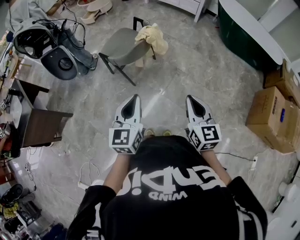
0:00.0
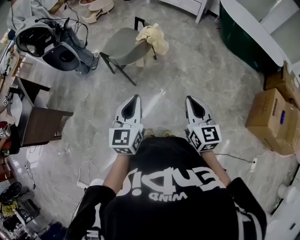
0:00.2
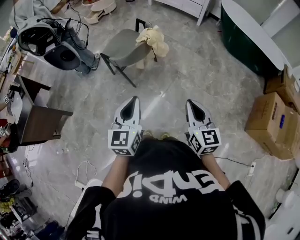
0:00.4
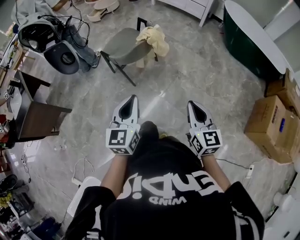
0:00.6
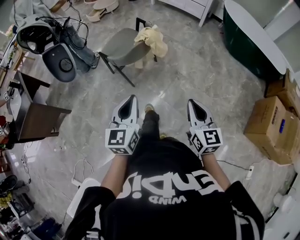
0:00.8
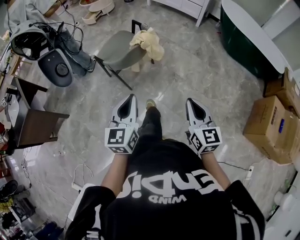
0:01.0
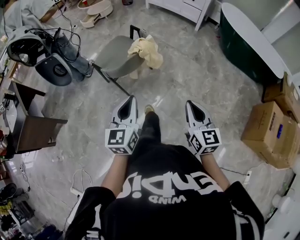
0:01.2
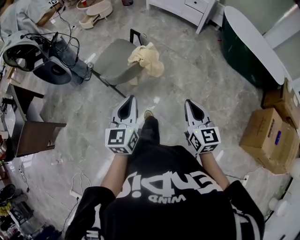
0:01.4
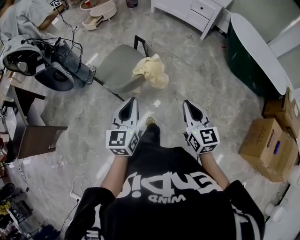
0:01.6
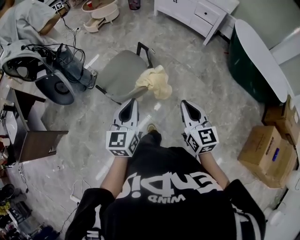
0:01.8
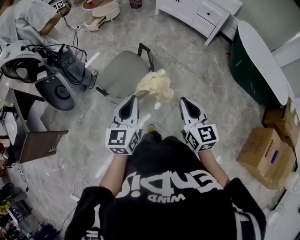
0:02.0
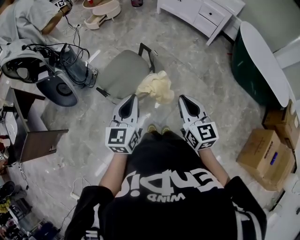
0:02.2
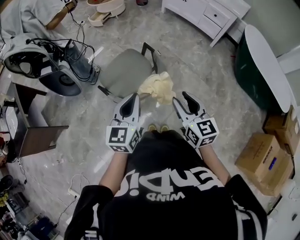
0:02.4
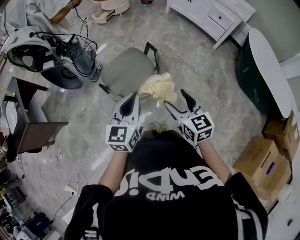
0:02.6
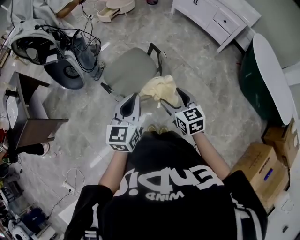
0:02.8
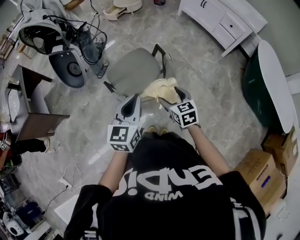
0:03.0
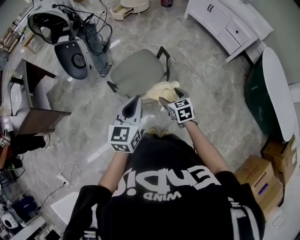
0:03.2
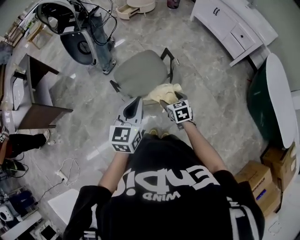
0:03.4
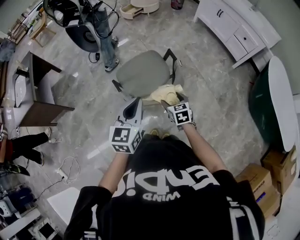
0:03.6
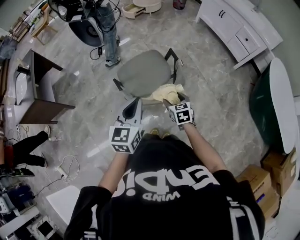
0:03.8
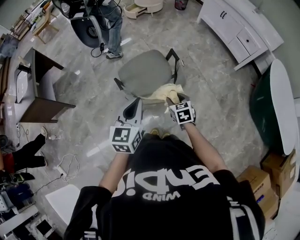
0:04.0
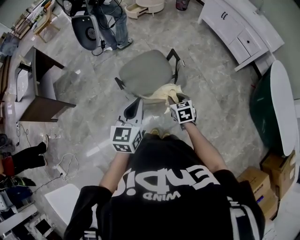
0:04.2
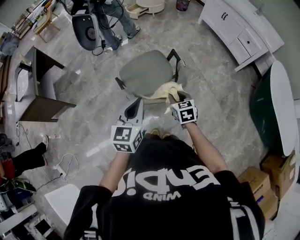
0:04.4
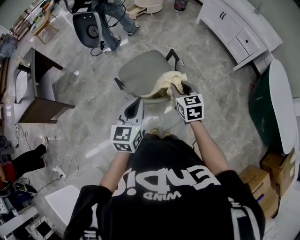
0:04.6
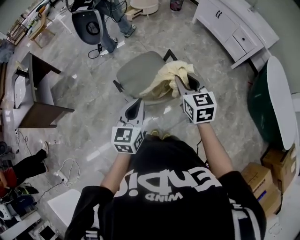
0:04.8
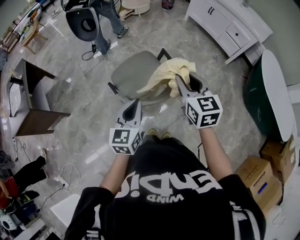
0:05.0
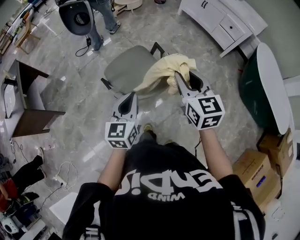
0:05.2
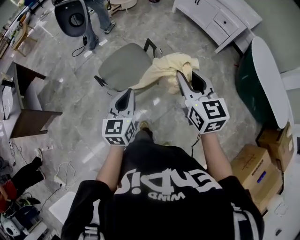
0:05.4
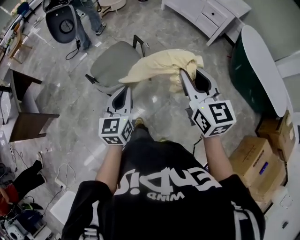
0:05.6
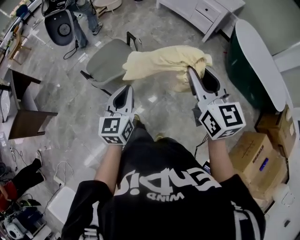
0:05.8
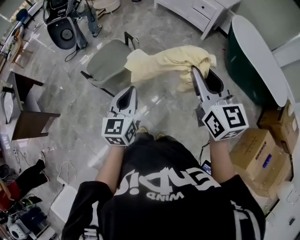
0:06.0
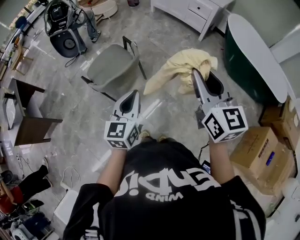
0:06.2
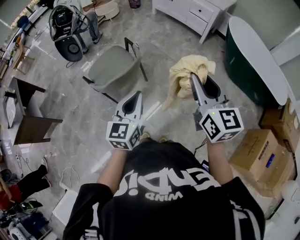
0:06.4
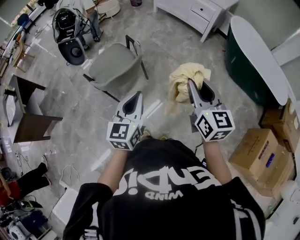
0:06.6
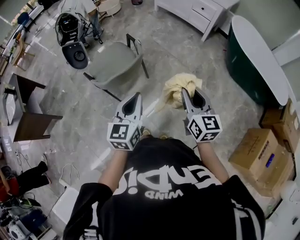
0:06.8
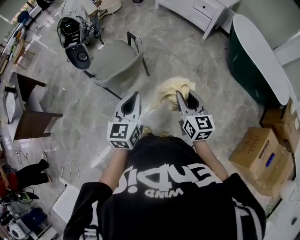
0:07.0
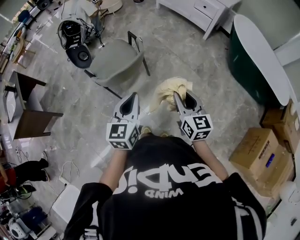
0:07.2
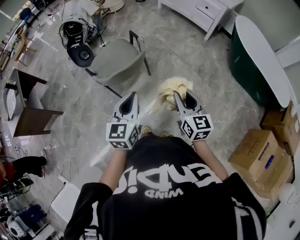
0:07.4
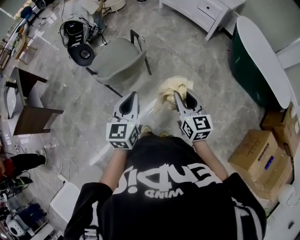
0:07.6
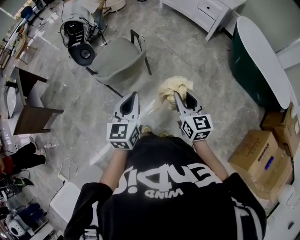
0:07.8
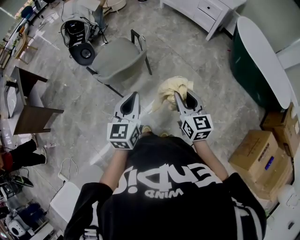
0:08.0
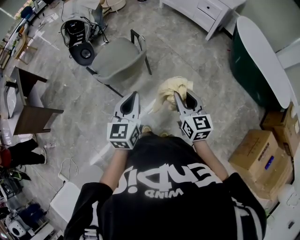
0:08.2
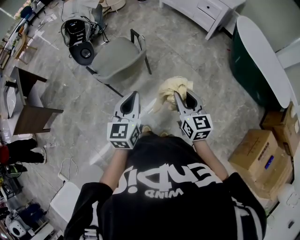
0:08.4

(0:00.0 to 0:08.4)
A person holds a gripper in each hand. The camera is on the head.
0:00.0 - 0:01.4: The grippers both shift forward by some 20 cm.
0:01.4 - 0:02.8: Both grippers travel together forward, roughly 25 cm. The right gripper turns by some 30 degrees, and opens.
0:02.8 - 0:04.2: The right gripper heads downward and forward, covering roughly 15 cm, and closes up.
0:04.2 - 0:05.6: The right gripper travels upward, to the right and backward by about 35 cm, and points its fingers some 30 degrees further upward. Meanwhile the left gripper heads to the right and backward, covering roughly 10 cm.
0:05.6 - 0:07.0: The right gripper heads downward, backward and to the right, covering roughly 20 cm, while the left gripper is displaced backward and to the right by about 15 cm.
0:07.0 - 0:08.4: The grippers make only small movements.

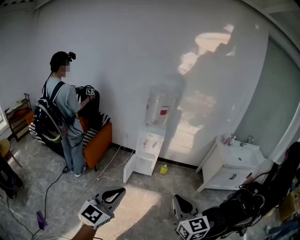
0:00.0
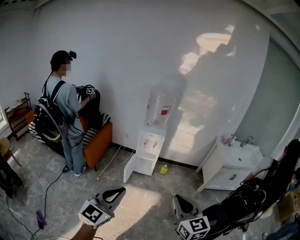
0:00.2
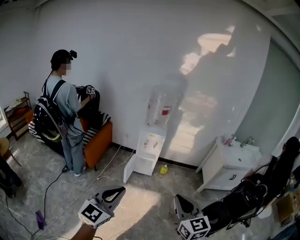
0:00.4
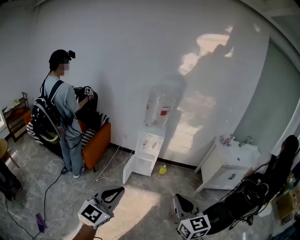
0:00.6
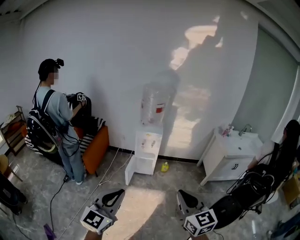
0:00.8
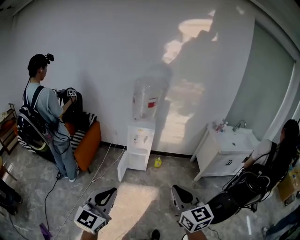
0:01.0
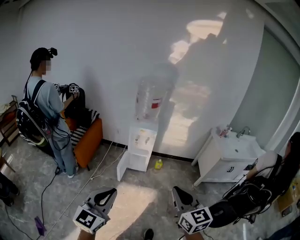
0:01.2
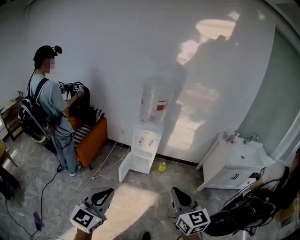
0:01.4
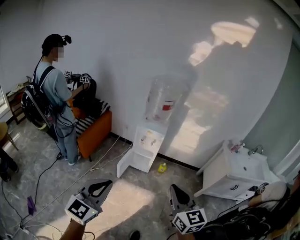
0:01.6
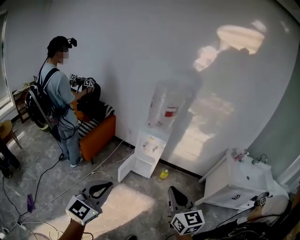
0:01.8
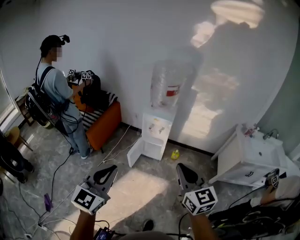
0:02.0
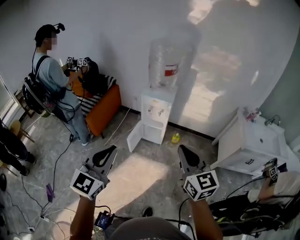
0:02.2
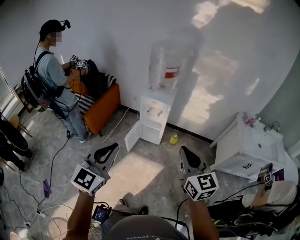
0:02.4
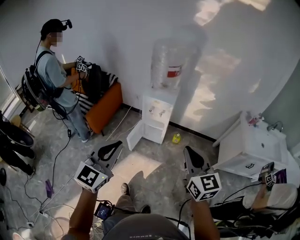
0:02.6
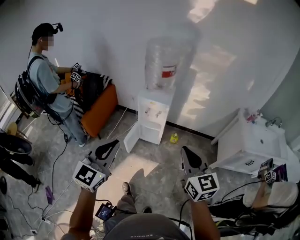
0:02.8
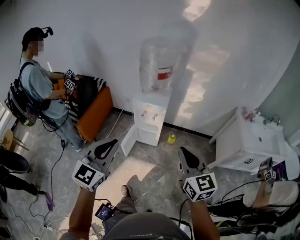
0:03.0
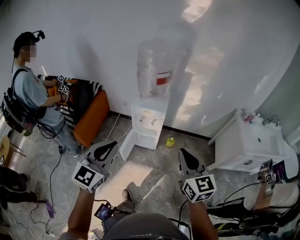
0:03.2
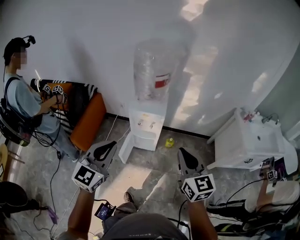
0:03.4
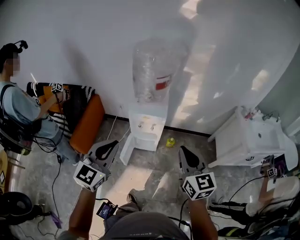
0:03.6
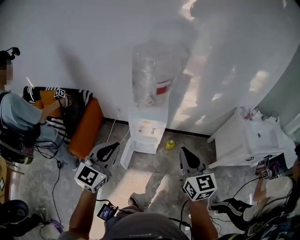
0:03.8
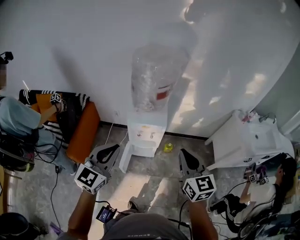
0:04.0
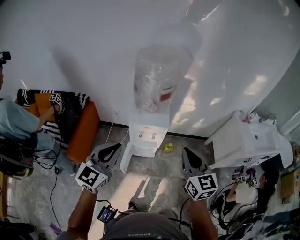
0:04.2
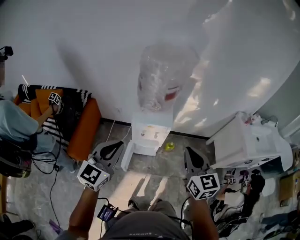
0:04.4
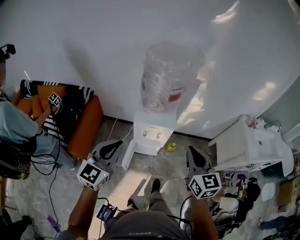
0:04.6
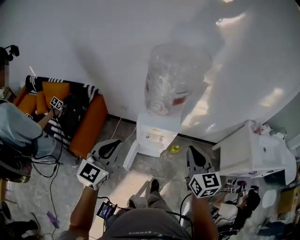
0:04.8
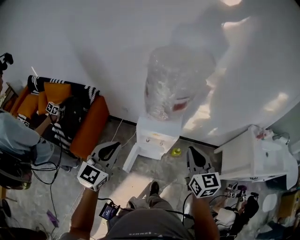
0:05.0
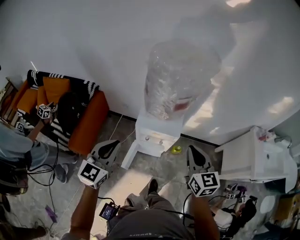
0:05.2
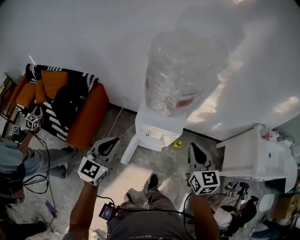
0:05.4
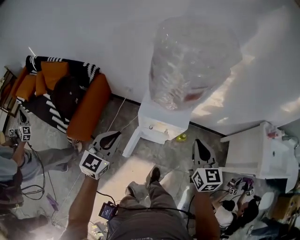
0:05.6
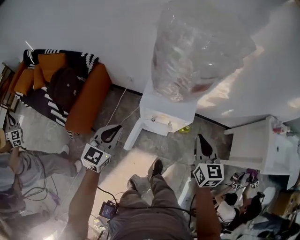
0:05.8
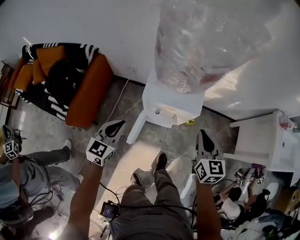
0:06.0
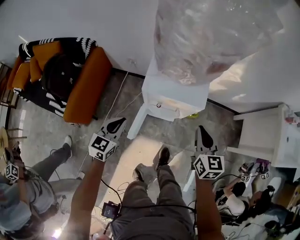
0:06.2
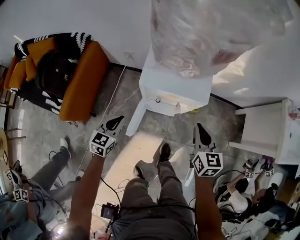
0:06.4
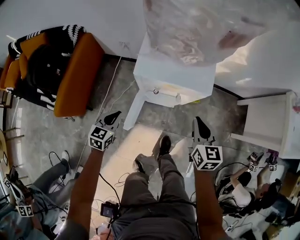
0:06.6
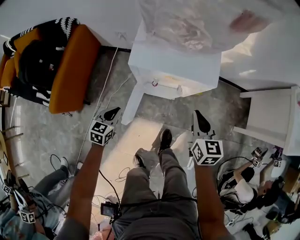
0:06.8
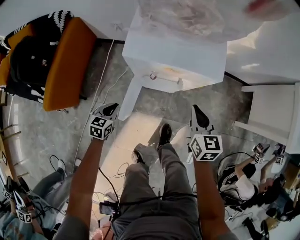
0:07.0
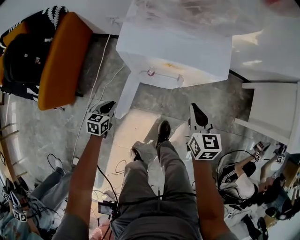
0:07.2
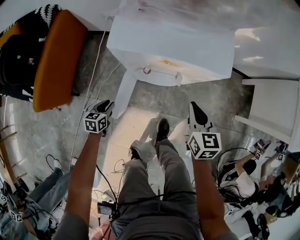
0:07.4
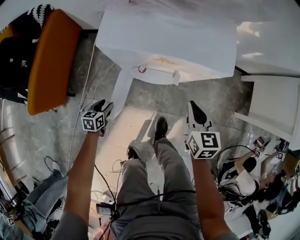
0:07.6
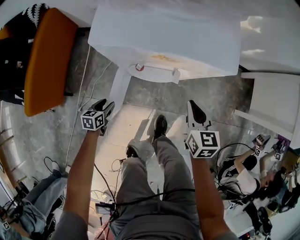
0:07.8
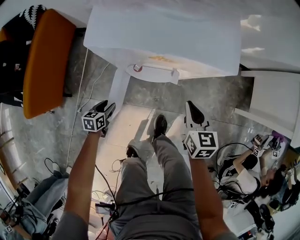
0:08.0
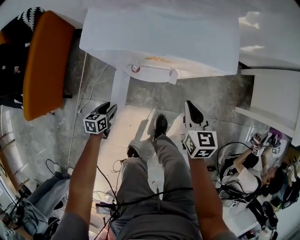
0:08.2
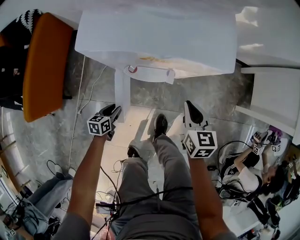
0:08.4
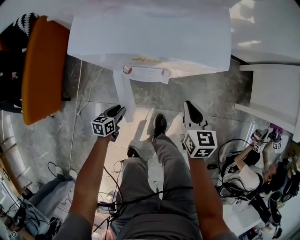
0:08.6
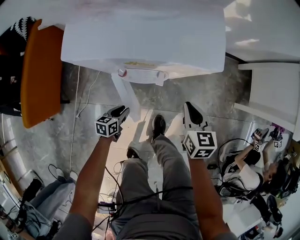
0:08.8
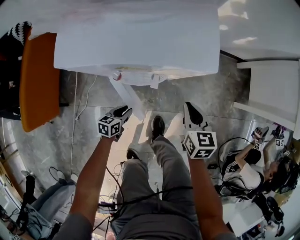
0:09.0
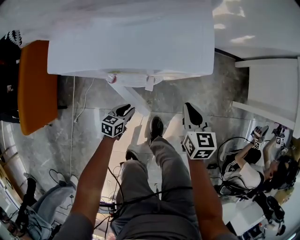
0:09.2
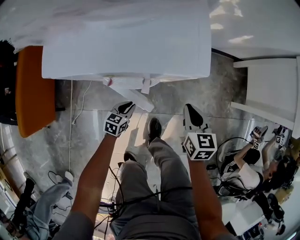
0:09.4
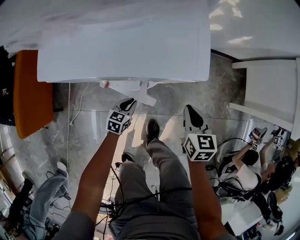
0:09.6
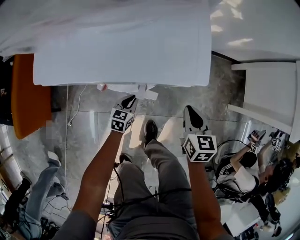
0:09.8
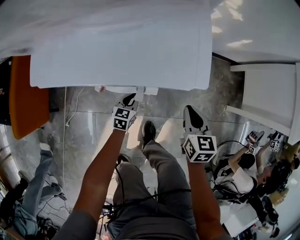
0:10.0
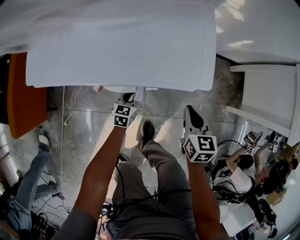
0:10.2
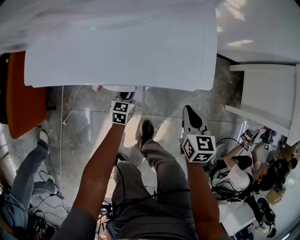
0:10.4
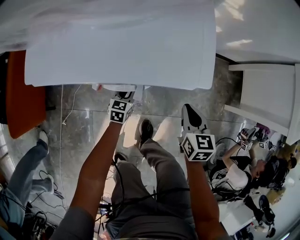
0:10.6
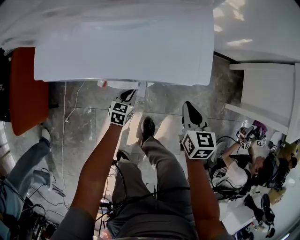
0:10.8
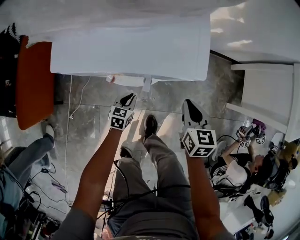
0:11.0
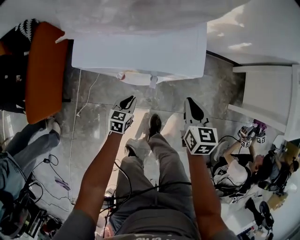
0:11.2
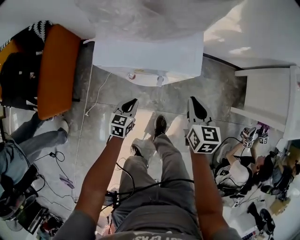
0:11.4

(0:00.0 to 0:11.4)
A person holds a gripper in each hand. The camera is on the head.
0:00.0 - 0:01.4: The left gripper moves forward and downward, about 10 cm. The right gripper moves forward, approximately 10 cm.
0:01.4 - 0:02.8: Both grippers move forward and to the right, about 20 cm.
0:02.8 - 0:04.2: Both grippers move forward and to the left, about 25 cm.
0:04.2 - 0:05.6: The right gripper travels forward and downward by roughly 20 cm. Meanwhile the left gripper travels downward and forward by roughly 20 cm.
0:05.6 - 0:07.2: The right gripper travels downward by approximately 35 cm; the left gripper travels downward by some 50 cm, and points its fingers some 30 degrees further downward.
0:07.2 - 0:08.6: The left gripper moves to the right and downward, some 15 cm, and opens its fingers, while the right gripper heads downward, covering approximately 5 cm.
0:08.6 - 0:10.0: The right gripper is displaced to the right by roughly 5 cm; the left gripper heads forward and to the right, covering approximately 20 cm, and changes its angle by approximately 20 degrees.
0:10.0 - 0:11.4: The right gripper travels upward by roughly 15 cm. The left gripper travels upward and to the left by roughly 20 cm.

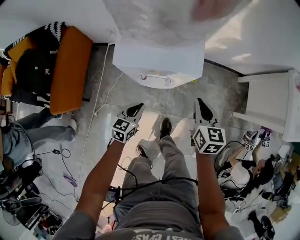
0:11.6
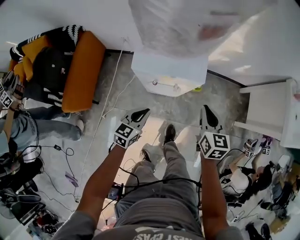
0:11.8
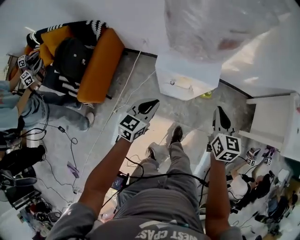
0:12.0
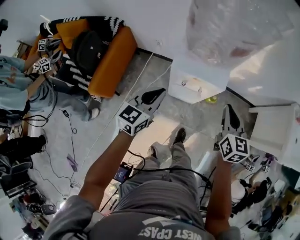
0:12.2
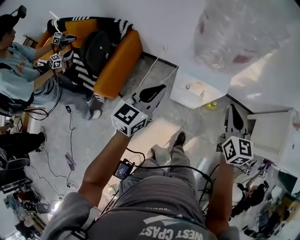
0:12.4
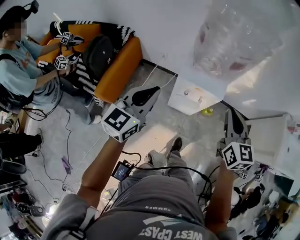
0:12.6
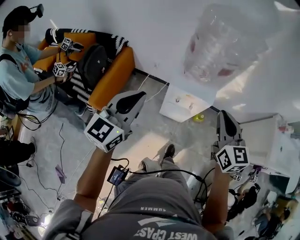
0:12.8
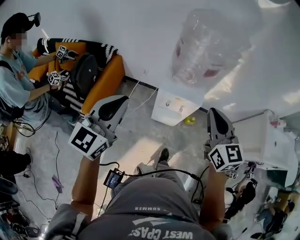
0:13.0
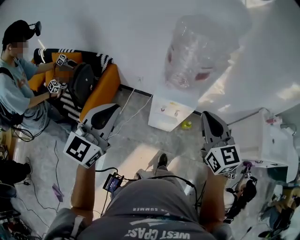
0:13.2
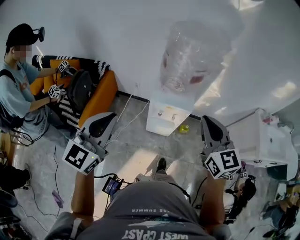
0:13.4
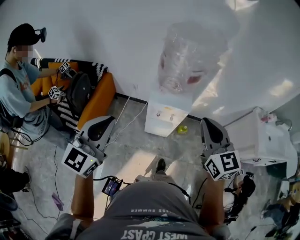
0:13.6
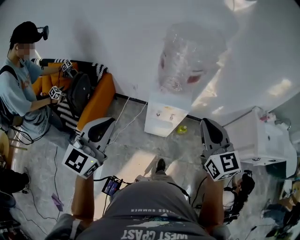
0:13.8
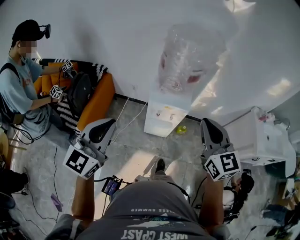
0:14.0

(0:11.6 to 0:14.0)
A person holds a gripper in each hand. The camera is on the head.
0:11.6 - 0:12.8: The grippers both shift upward by some 40 cm. The left gripper tips its fingers upward by roughly 30 degrees; the right gripper changes its angle by roughly 30 degrees.
0:12.8 - 0:14.0: The left gripper is displaced backward and upward by some 10 cm; the right gripper is displaced upward and backward by about 10 cm.

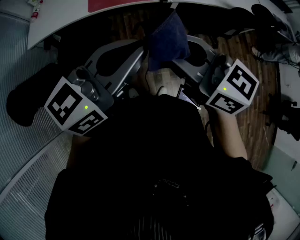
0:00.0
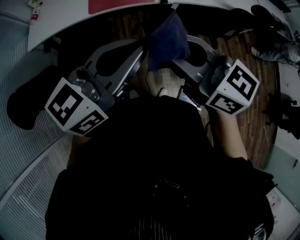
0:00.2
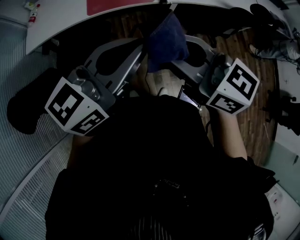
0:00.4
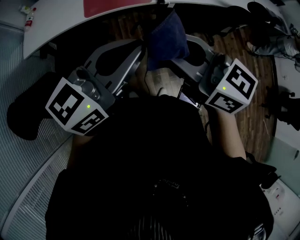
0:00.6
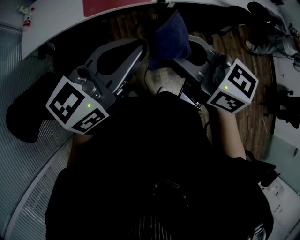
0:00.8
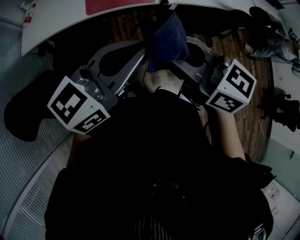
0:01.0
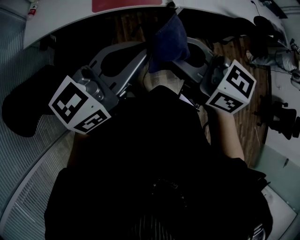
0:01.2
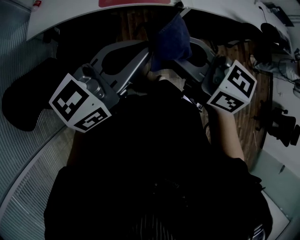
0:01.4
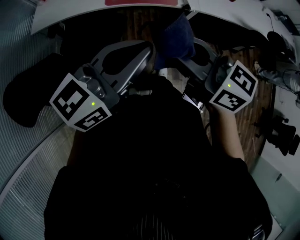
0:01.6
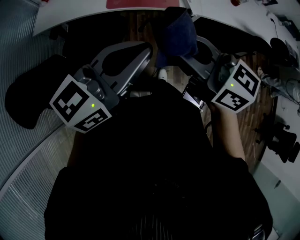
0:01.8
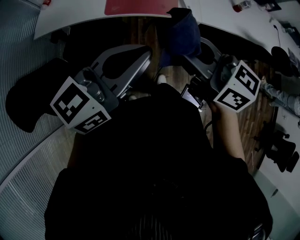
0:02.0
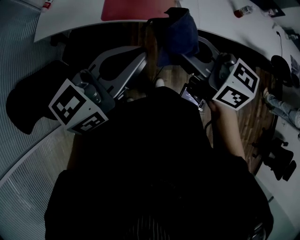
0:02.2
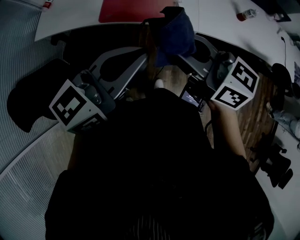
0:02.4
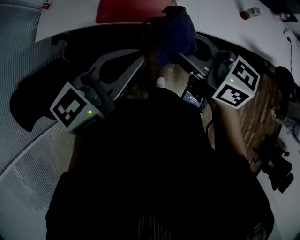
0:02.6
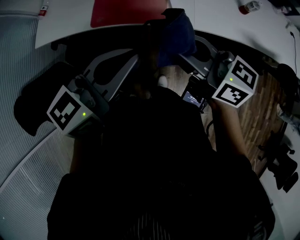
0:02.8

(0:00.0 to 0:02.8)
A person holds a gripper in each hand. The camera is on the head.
0:00.0 - 0:01.4: Both grippers move to the left, some 5 cm.
0:01.4 - 0:02.8: The right gripper travels to the right and forward by approximately 20 cm, while the left gripper shifts roughly 15 cm to the right.
